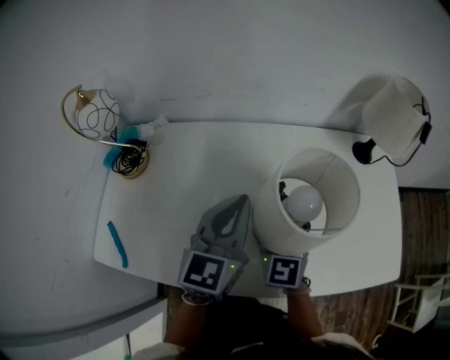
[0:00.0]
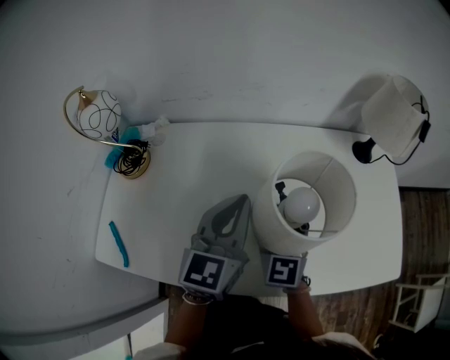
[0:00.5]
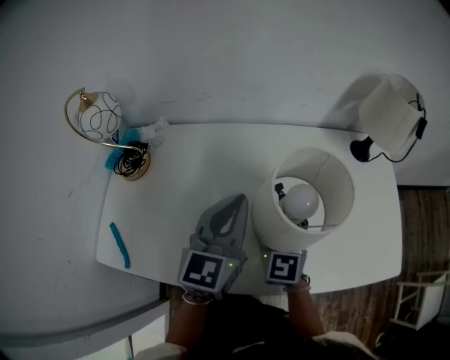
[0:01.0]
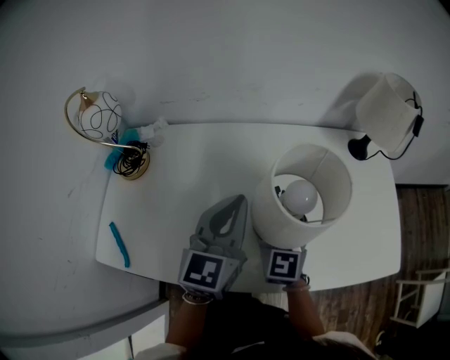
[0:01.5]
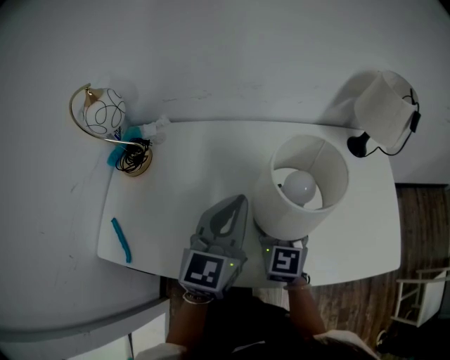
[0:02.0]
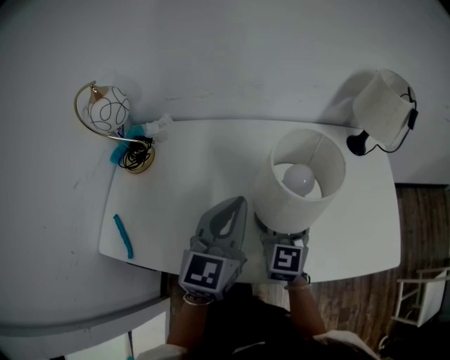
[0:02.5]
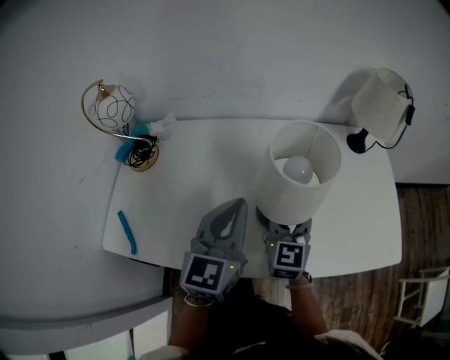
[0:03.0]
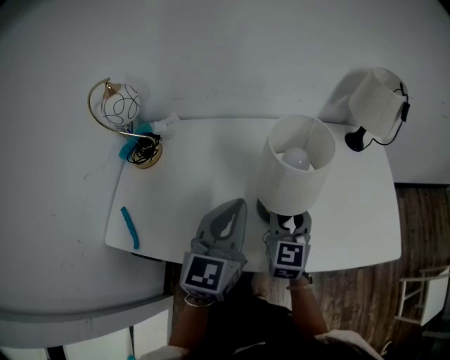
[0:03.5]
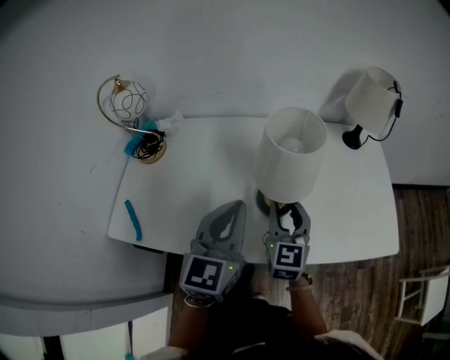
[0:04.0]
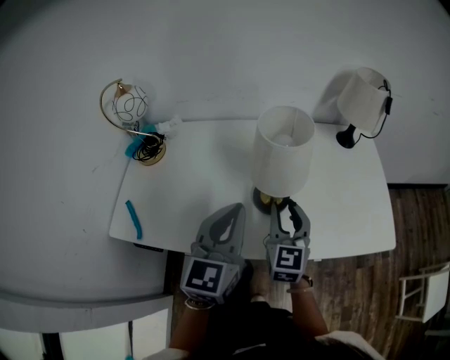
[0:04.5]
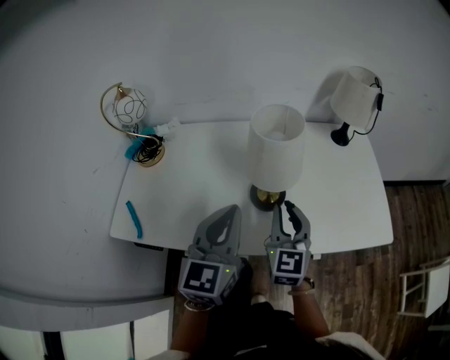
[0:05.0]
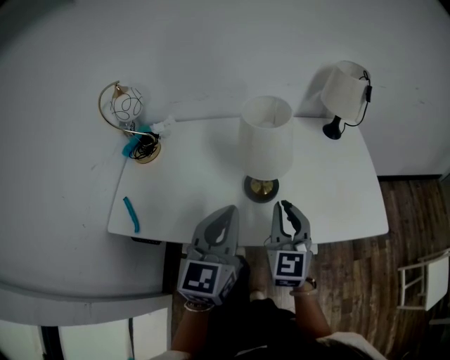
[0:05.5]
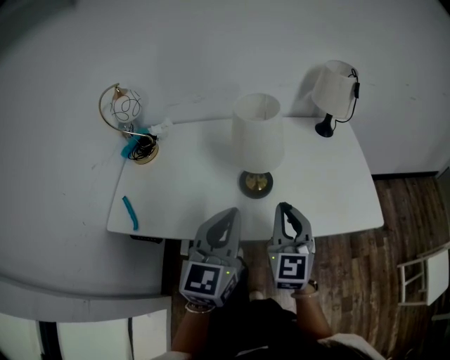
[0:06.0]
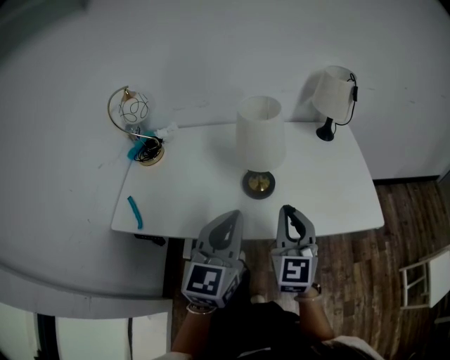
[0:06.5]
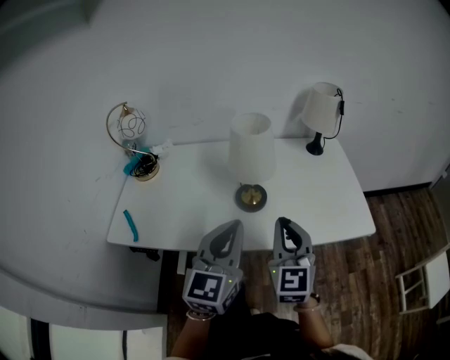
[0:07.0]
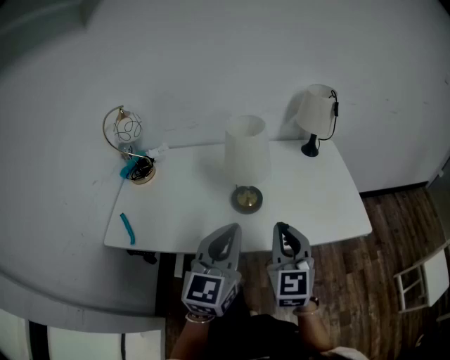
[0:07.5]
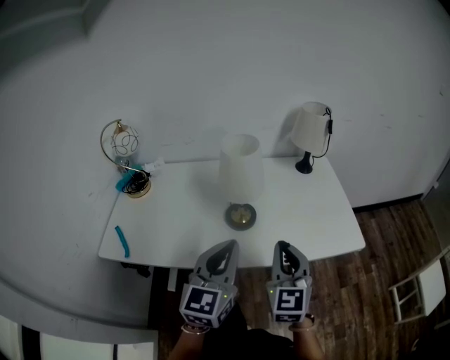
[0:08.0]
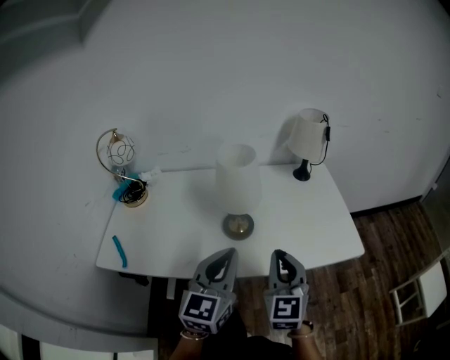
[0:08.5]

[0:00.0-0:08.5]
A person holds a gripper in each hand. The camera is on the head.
0:00.0 to 0:02.0: The grippers move only a little.
0:02.0 to 0:04.0: Both grippers move backward, roughly 10 cm.
0:04.0 to 0:06.5: The left gripper heads backward and to the right, covering some 15 cm. The right gripper travels backward, upward and to the right by roughly 20 cm, and closes.
0:06.5 to 0:08.5: There are only small adjustments of the grippers.

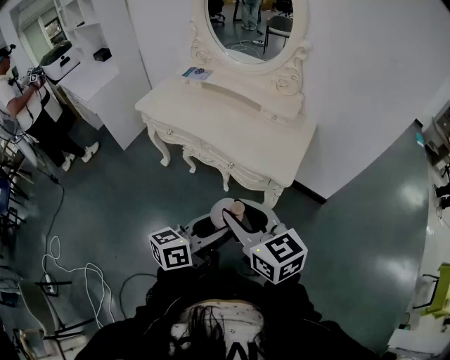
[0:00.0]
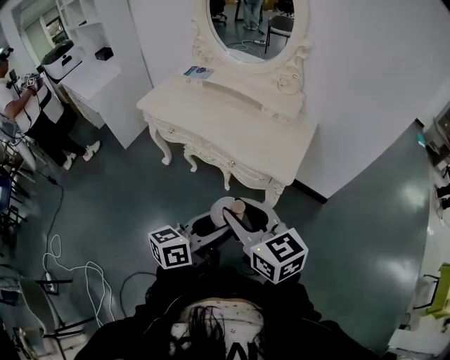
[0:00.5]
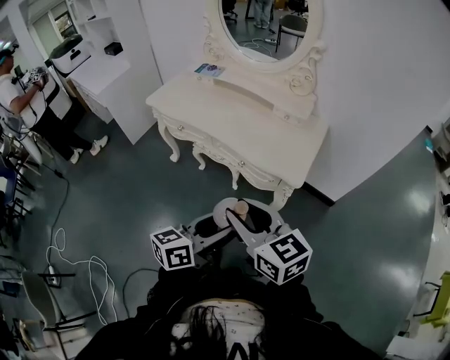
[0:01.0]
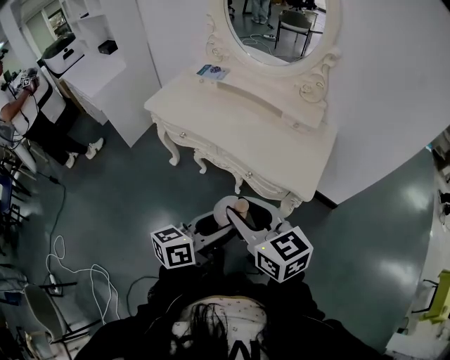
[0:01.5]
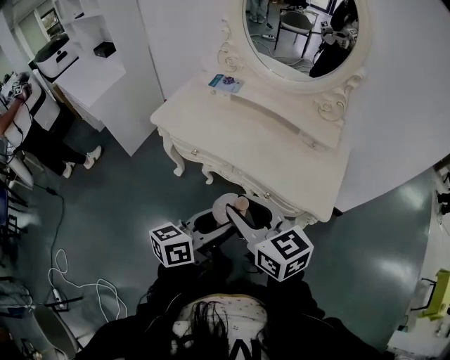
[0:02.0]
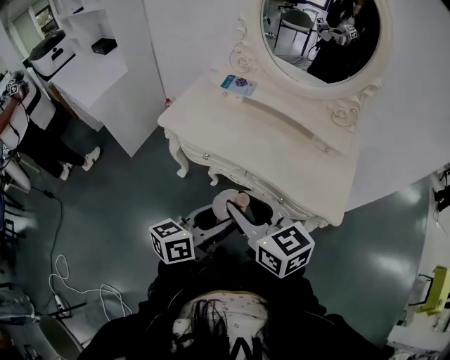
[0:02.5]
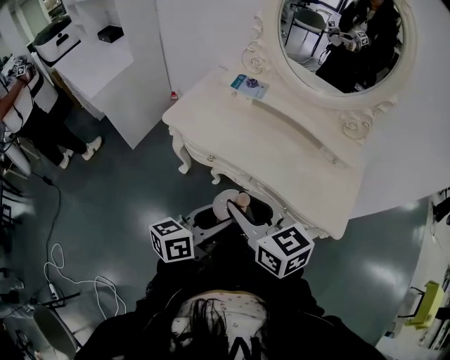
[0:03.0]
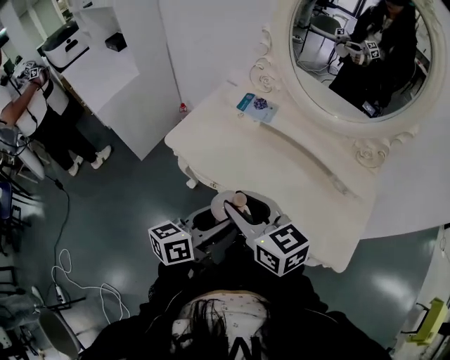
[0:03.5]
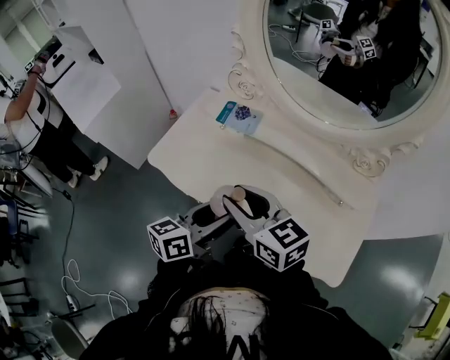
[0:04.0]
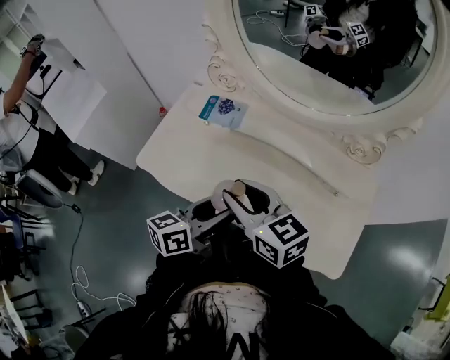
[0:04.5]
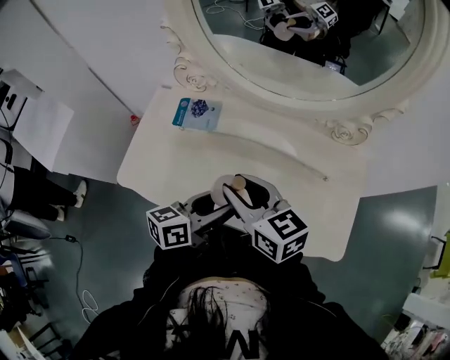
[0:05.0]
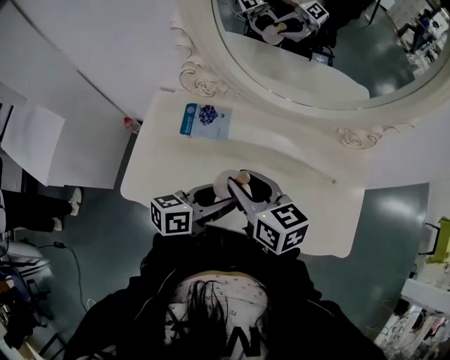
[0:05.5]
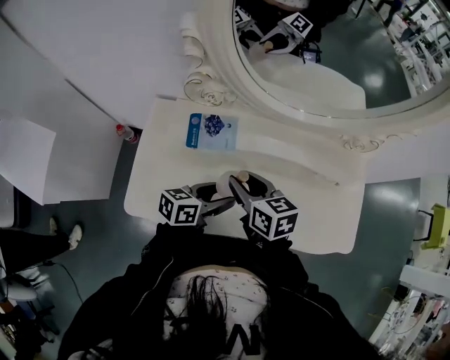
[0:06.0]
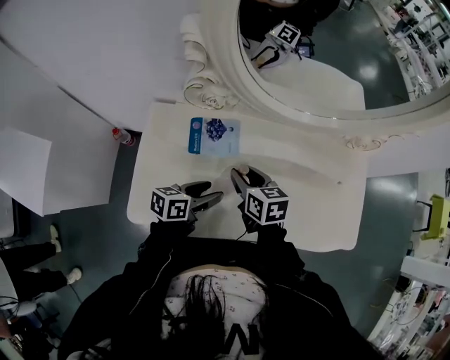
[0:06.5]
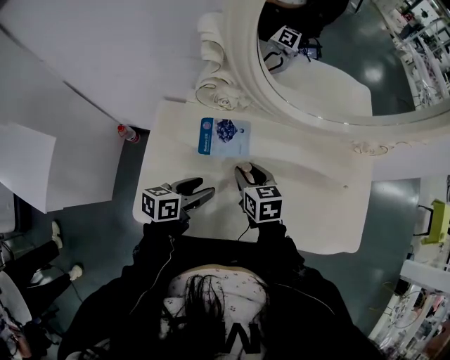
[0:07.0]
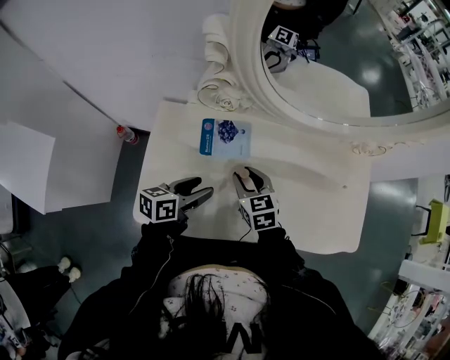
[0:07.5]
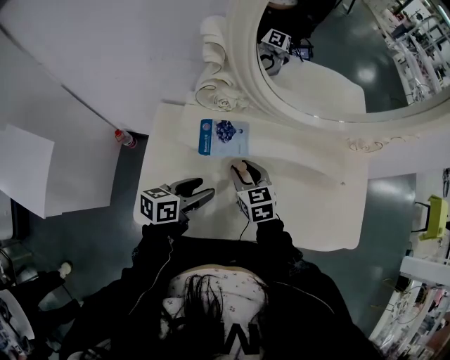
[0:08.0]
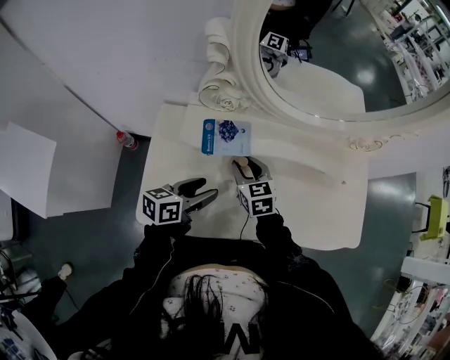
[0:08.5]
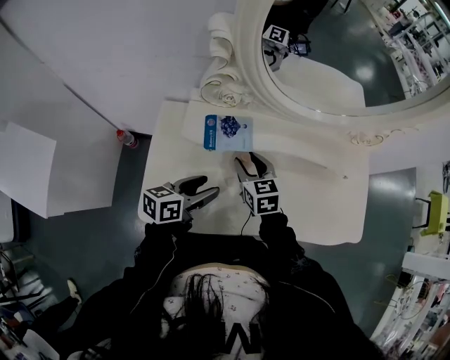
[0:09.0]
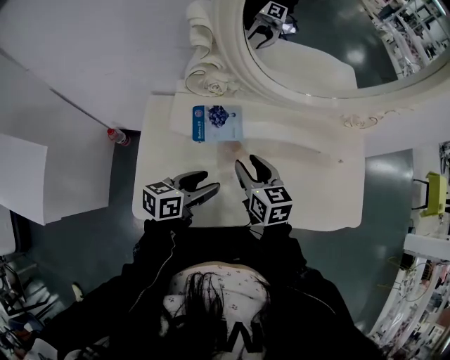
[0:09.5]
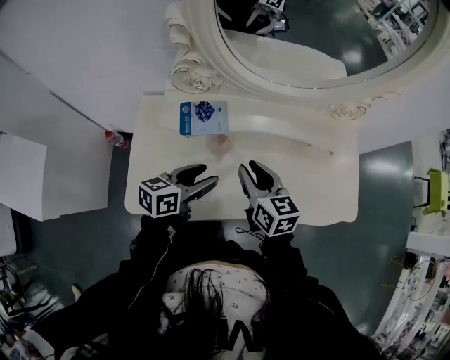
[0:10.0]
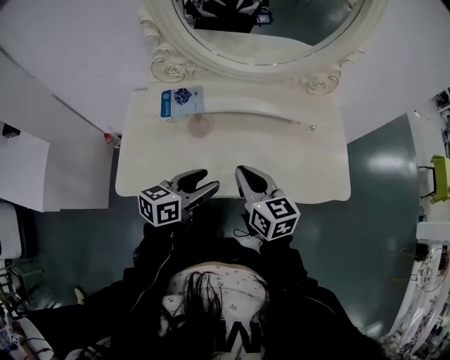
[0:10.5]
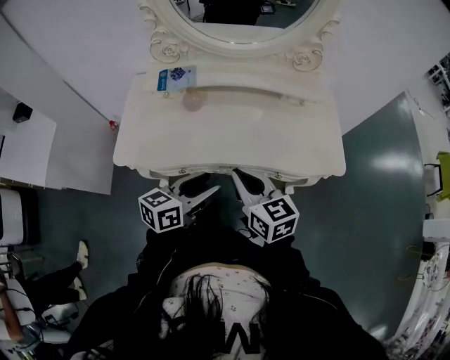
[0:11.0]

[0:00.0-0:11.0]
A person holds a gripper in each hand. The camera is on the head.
0:00.0 to 0:02.0: The two grippers go some 25 cm to the left and forward.
0:02.0 to 0:03.5: The grippers both shift forward and to the left by approximately 20 cm.
0:03.5 to 0:05.5: The right gripper shifts by about 25 cm, and swivels roughly 30 degrees. Meanwhile the left gripper ends up about 25 cm from where it was, and turns by approximately 30 degrees.
0:05.5 to 0:07.5: The right gripper heads downward and to the left, covering approximately 15 cm, and swivels roughly 30 degrees; the left gripper moves to the left and downward, some 20 cm.
0:07.5 to 0:09.0: The grippers make only small movements.
0:09.0 to 0:11.0: The right gripper heads backward, to the right and upward, covering approximately 35 cm, rotates about 20 degrees, and closes, while the left gripper is displaced to the right and backward by some 30 cm.

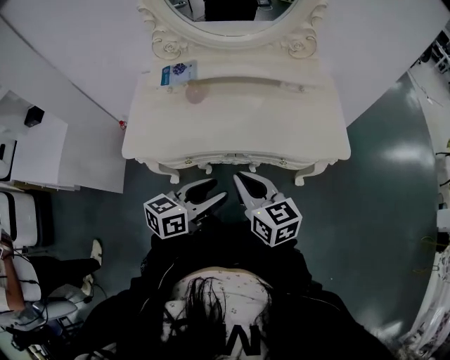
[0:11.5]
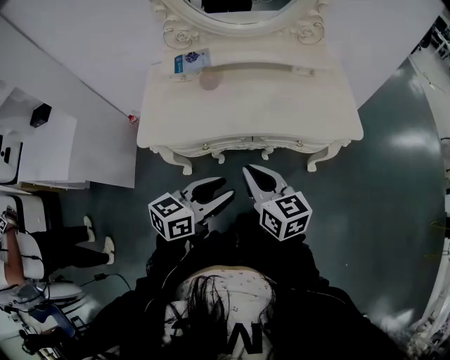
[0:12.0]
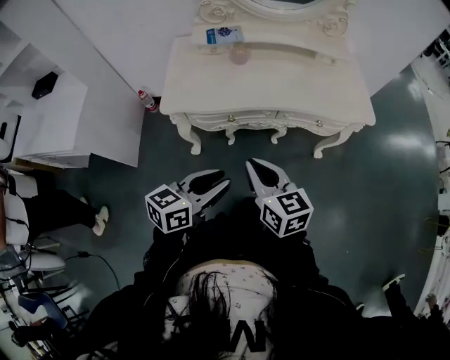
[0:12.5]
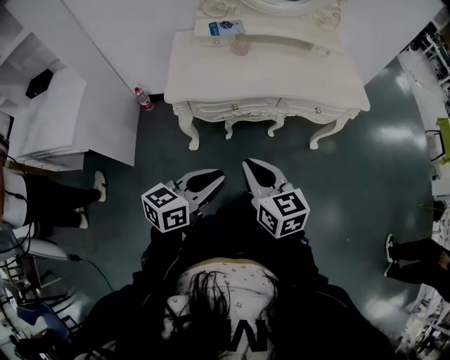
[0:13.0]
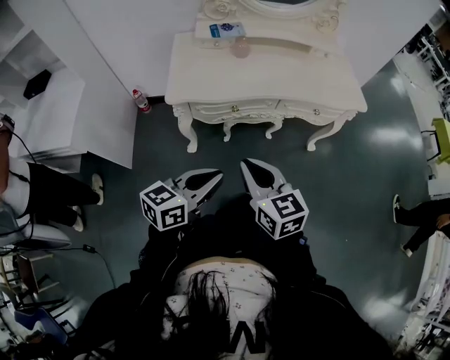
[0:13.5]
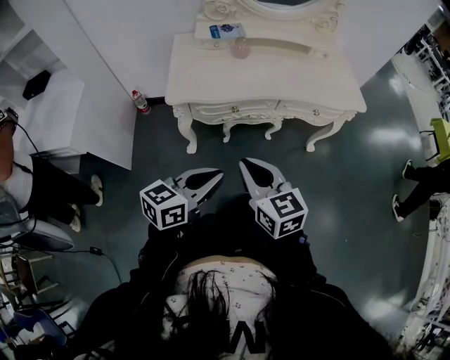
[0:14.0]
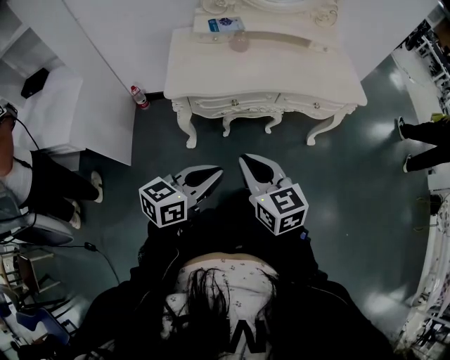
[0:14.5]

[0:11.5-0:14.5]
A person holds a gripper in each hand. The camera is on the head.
0:11.5 to 0:13.0: Both grippers move backward and to the left, about 30 cm. The left gripper closes its fingers.
0:13.0 to 0:14.5: The grippers move only a little.

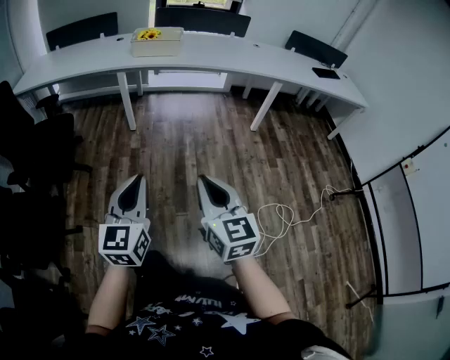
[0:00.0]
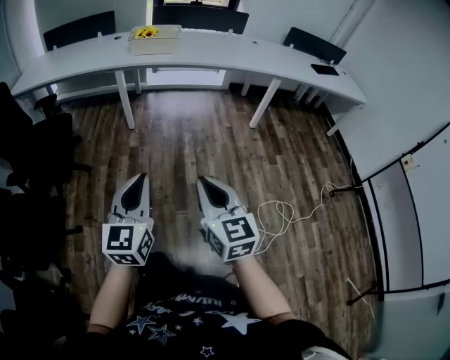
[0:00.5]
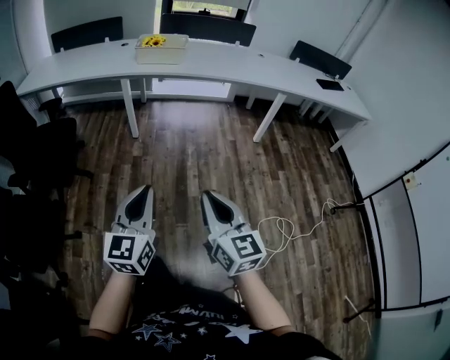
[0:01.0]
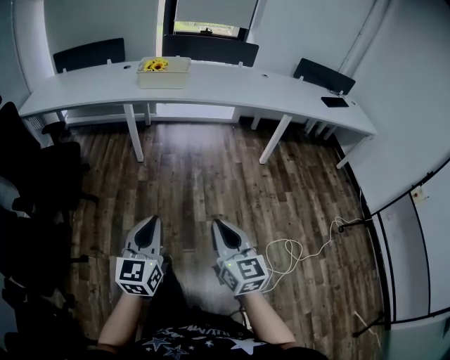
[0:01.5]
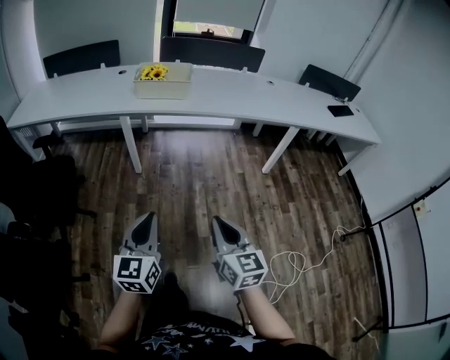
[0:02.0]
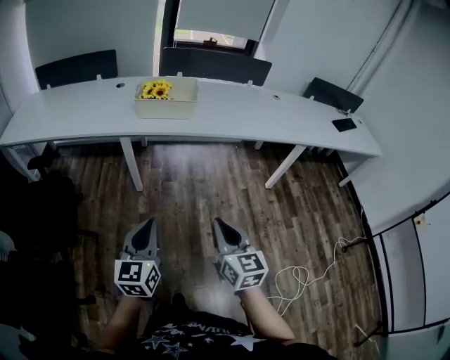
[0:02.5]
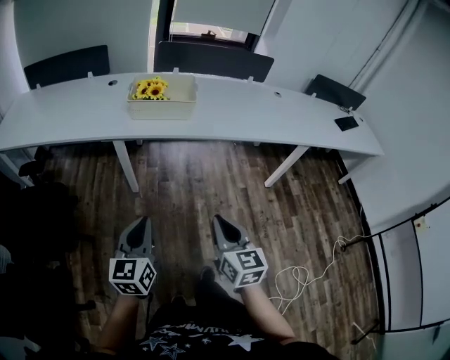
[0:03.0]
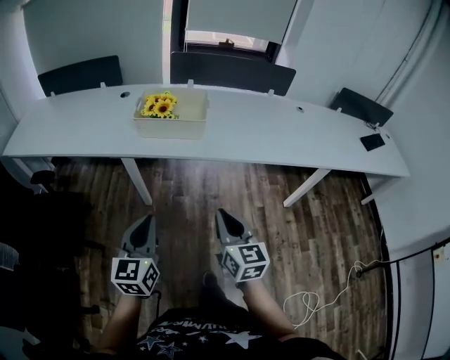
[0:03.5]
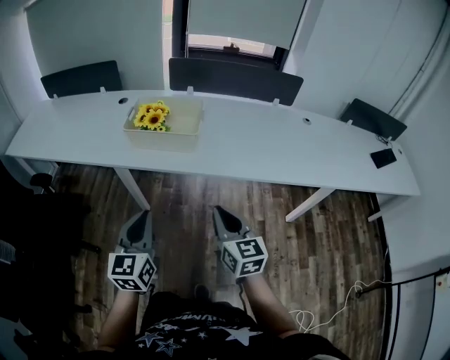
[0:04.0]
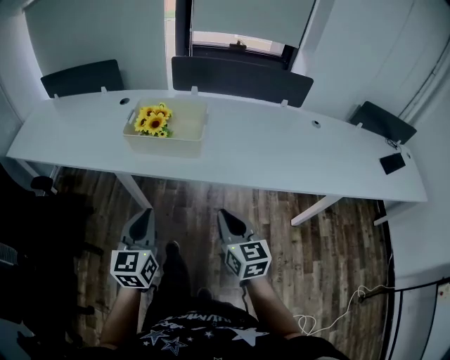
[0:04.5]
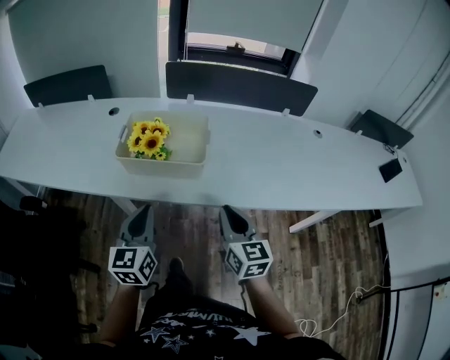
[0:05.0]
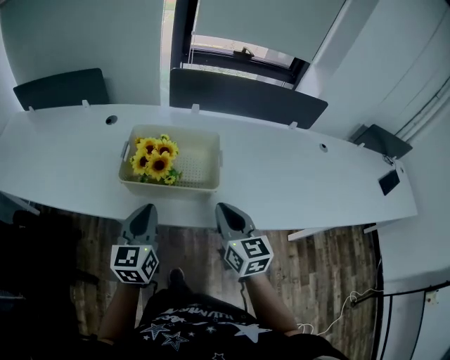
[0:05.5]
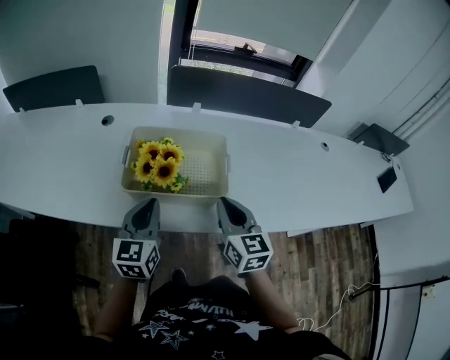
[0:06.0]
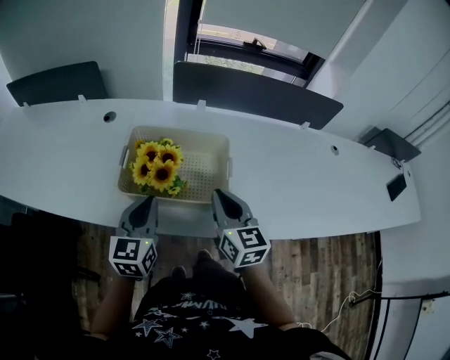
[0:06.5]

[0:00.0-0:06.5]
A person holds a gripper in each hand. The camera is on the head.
0:00.0 to 0:02.0: Both grippers travel together forward, approximately 25 cm.
0:02.0 to 0:04.5: The pair of grippers is taken forward, about 50 cm.
0:04.5 to 0:06.5: Both grippers travel together forward, about 30 cm.
